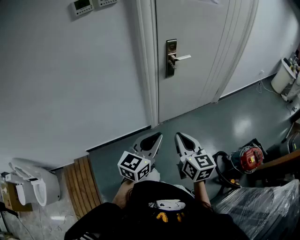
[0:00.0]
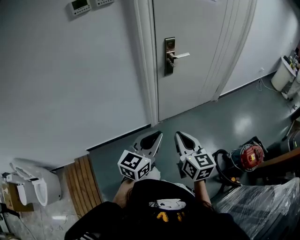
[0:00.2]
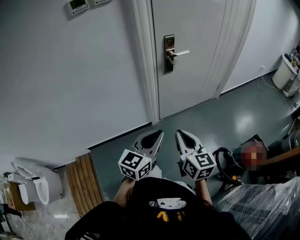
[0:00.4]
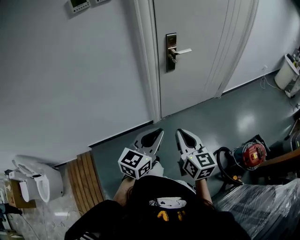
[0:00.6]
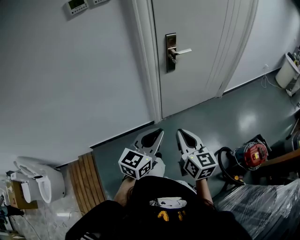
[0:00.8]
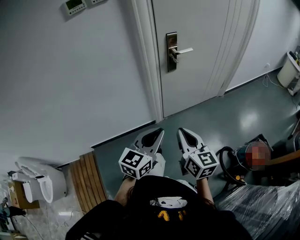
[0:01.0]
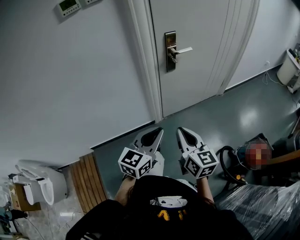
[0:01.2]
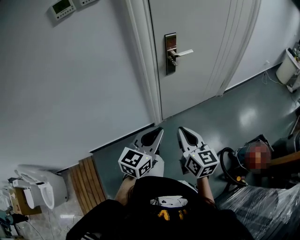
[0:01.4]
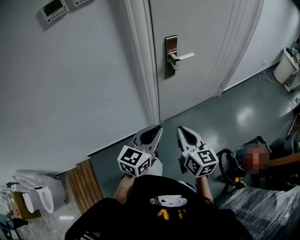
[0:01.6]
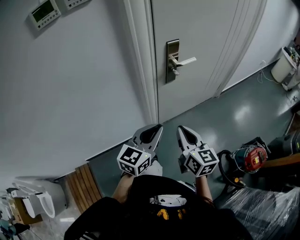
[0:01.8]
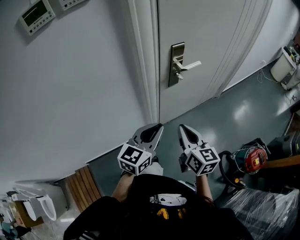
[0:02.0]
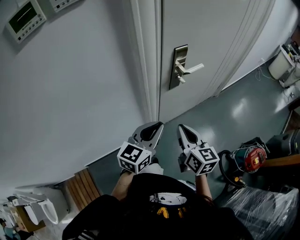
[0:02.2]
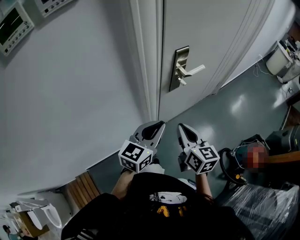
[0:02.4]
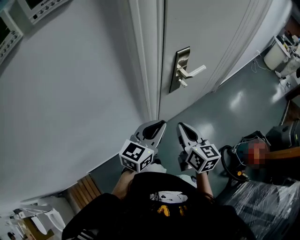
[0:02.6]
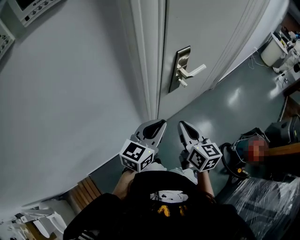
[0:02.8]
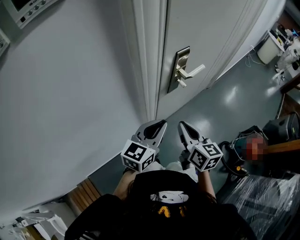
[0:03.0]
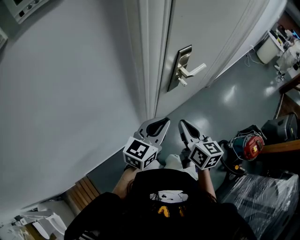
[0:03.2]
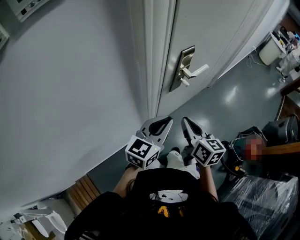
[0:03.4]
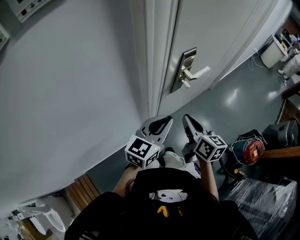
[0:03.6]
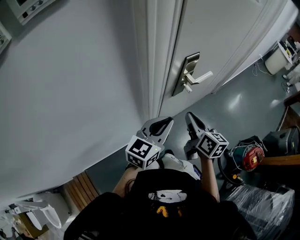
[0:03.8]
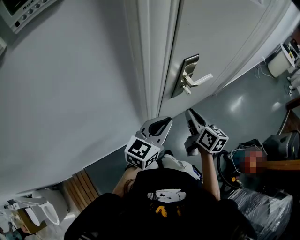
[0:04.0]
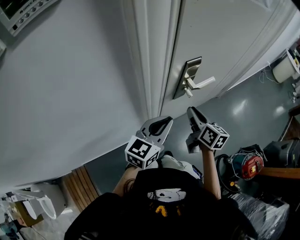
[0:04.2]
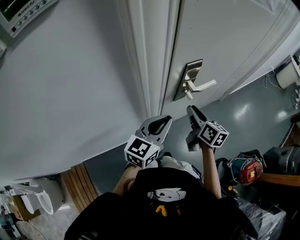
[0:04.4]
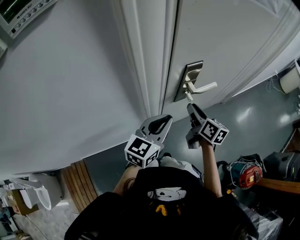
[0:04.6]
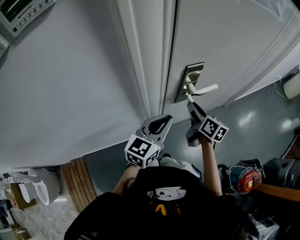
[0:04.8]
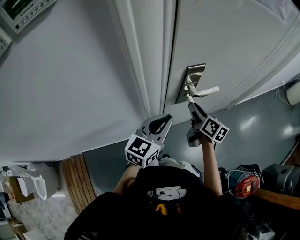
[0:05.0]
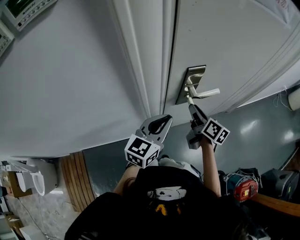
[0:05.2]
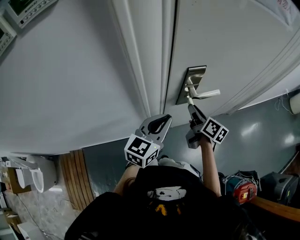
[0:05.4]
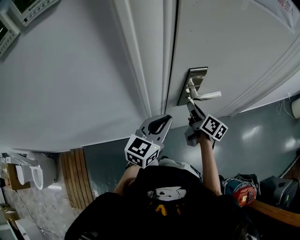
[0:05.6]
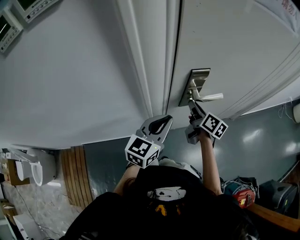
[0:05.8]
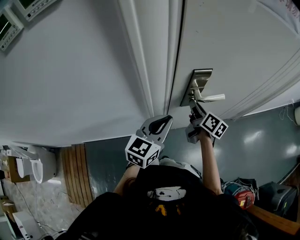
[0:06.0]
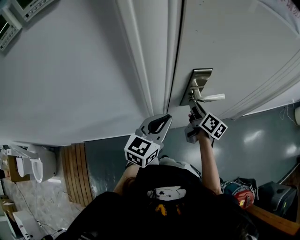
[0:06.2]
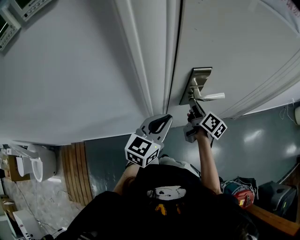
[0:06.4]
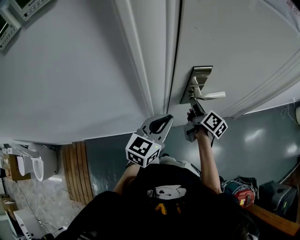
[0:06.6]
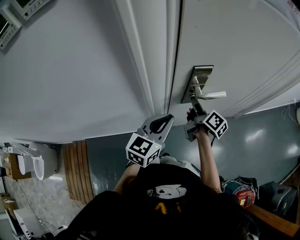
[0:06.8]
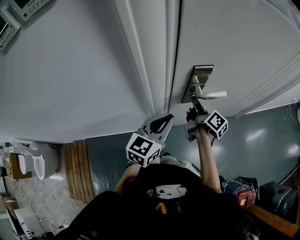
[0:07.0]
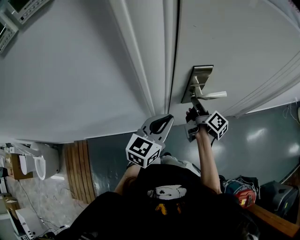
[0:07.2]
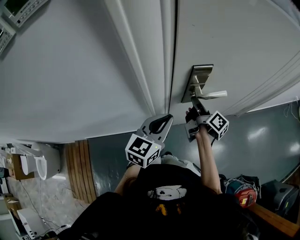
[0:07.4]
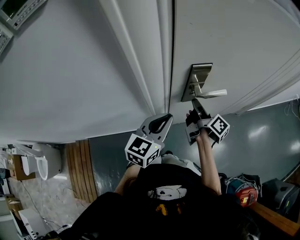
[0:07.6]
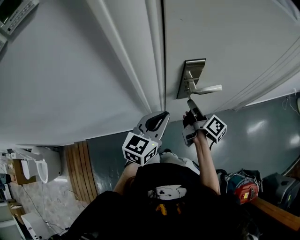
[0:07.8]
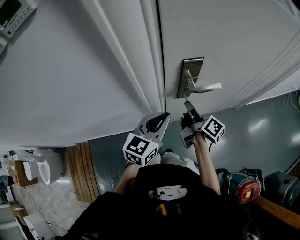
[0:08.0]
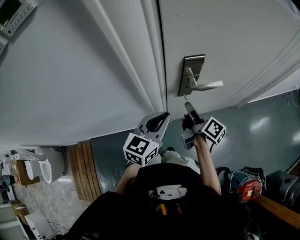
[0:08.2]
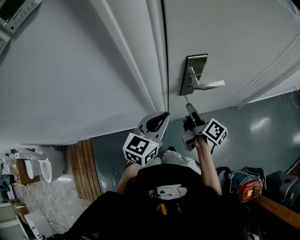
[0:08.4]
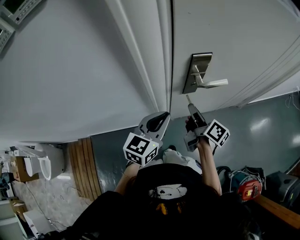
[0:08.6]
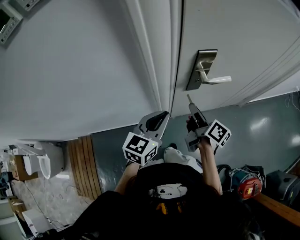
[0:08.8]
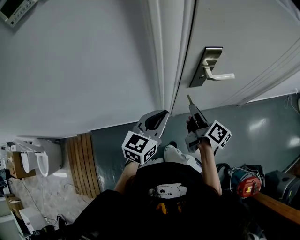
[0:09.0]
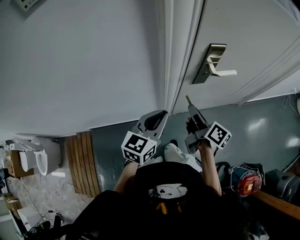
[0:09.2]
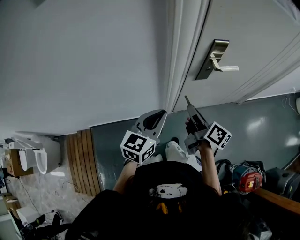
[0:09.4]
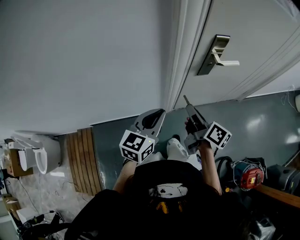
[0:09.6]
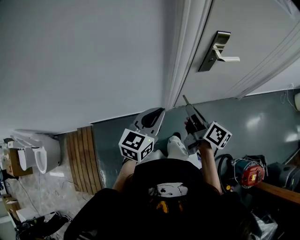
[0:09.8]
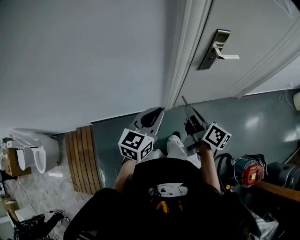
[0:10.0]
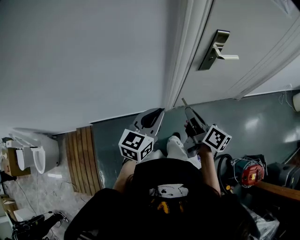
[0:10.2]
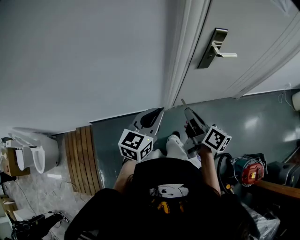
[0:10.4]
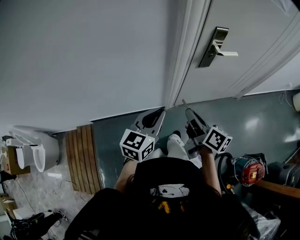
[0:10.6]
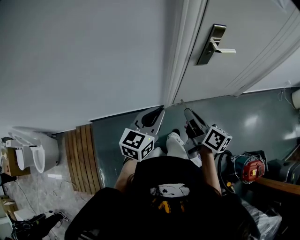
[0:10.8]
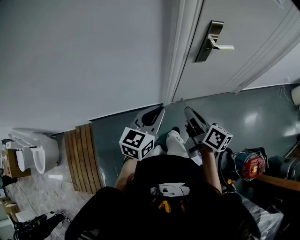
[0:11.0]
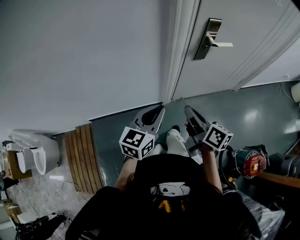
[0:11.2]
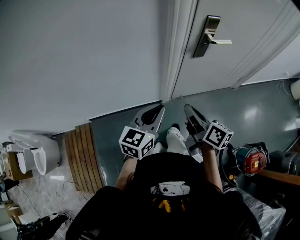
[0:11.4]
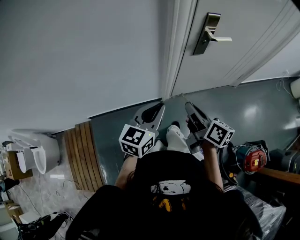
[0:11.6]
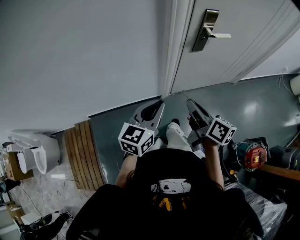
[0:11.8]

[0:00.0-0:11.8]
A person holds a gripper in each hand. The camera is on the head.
0:00.0 to 0:01.4: The two grippers go about 10 cm forward.
0:01.4 to 0:03.0: The left gripper shifts some 25 cm forward, while the right gripper travels forward and to the left by about 25 cm.
0:03.0 to 0:04.4: The right gripper goes about 15 cm forward, while the left gripper is displaced forward by roughly 5 cm.
0:04.4 to 0:06.0: The right gripper goes some 10 cm forward.
0:06.0 to 0:07.4: The right gripper swivels approximately 30 degrees.
0:07.4 to 0:08.8: The right gripper travels backward by about 10 cm. The left gripper is displaced backward by approximately 5 cm.
0:08.8 to 0:10.4: The two grippers go some 20 cm backward and to the left.
0:10.4 to 0:11.8: The grippers make only small movements.

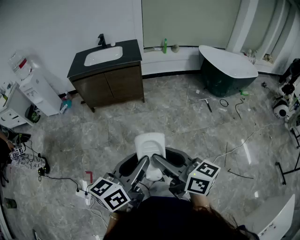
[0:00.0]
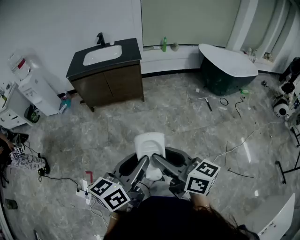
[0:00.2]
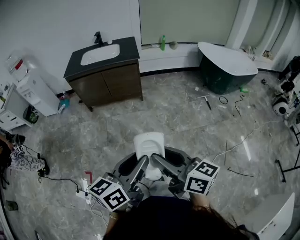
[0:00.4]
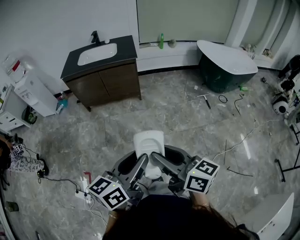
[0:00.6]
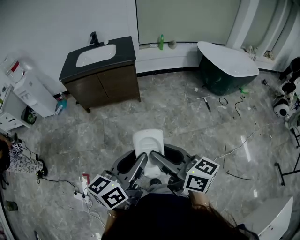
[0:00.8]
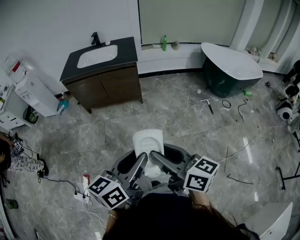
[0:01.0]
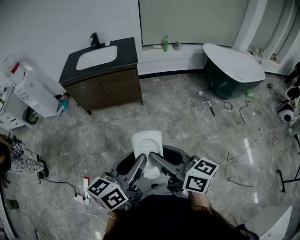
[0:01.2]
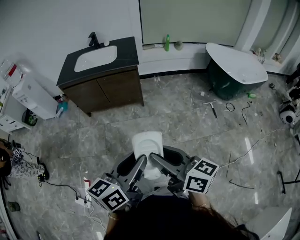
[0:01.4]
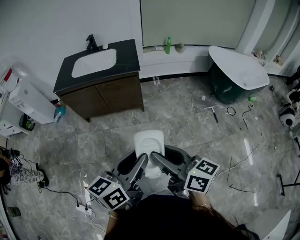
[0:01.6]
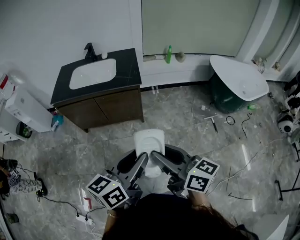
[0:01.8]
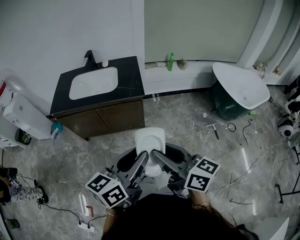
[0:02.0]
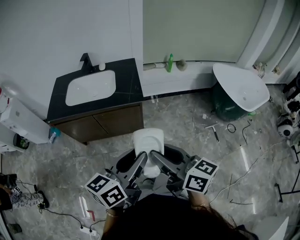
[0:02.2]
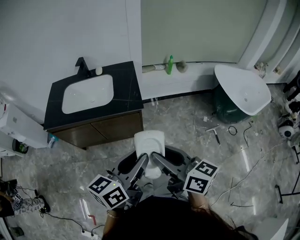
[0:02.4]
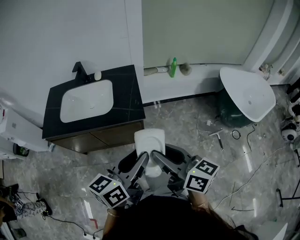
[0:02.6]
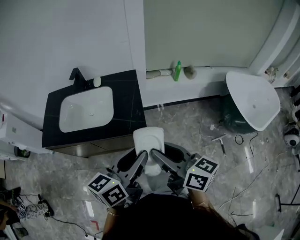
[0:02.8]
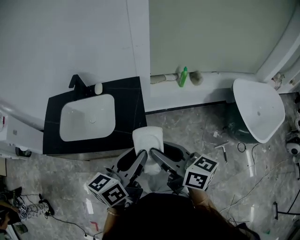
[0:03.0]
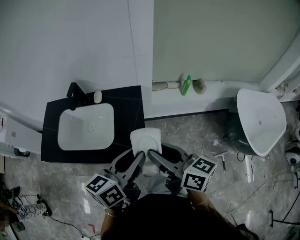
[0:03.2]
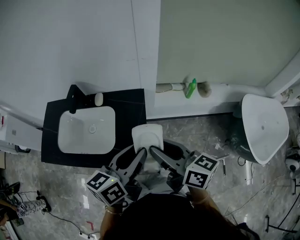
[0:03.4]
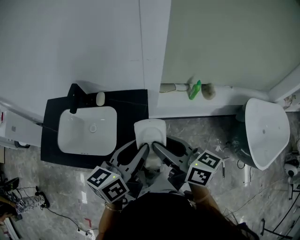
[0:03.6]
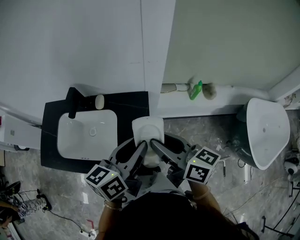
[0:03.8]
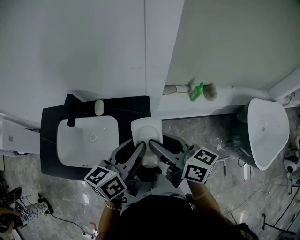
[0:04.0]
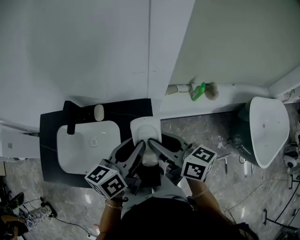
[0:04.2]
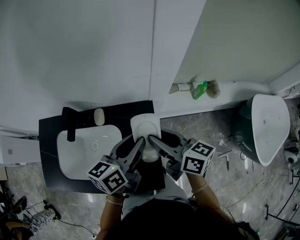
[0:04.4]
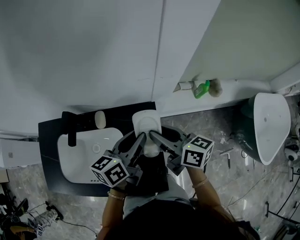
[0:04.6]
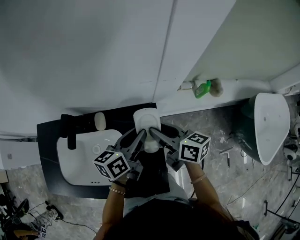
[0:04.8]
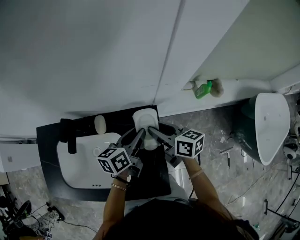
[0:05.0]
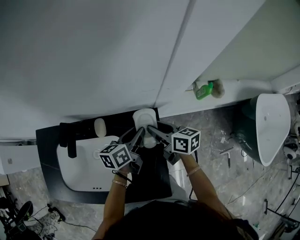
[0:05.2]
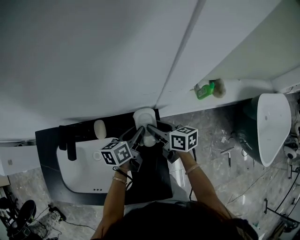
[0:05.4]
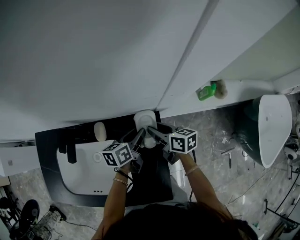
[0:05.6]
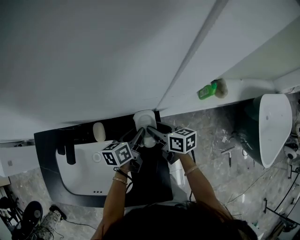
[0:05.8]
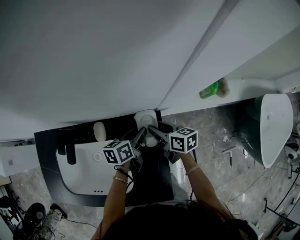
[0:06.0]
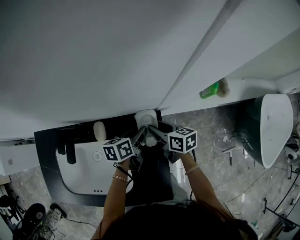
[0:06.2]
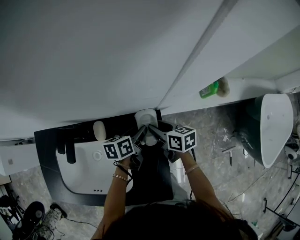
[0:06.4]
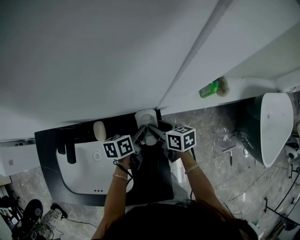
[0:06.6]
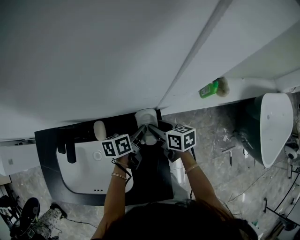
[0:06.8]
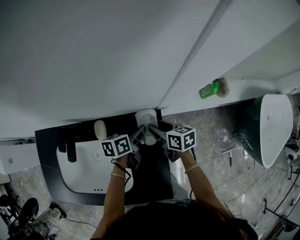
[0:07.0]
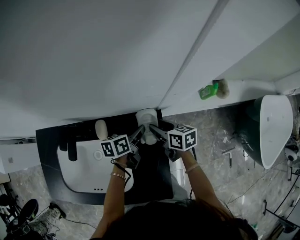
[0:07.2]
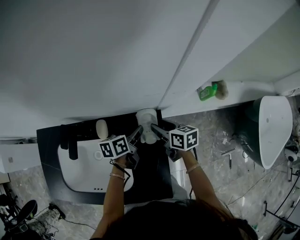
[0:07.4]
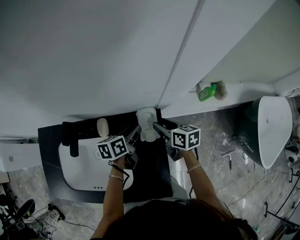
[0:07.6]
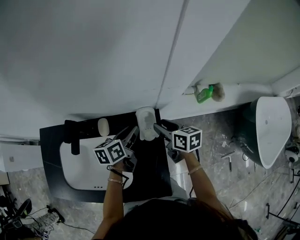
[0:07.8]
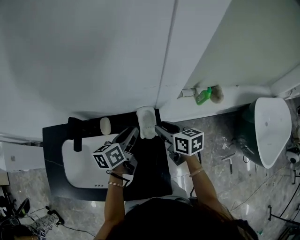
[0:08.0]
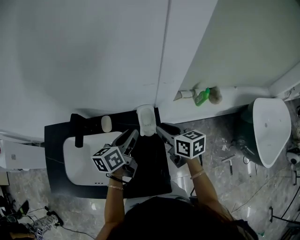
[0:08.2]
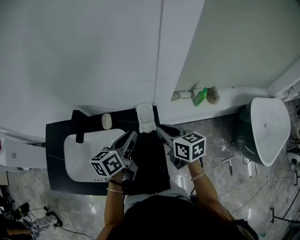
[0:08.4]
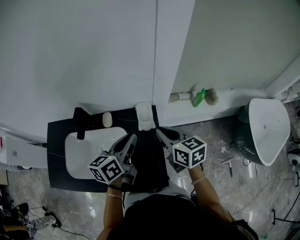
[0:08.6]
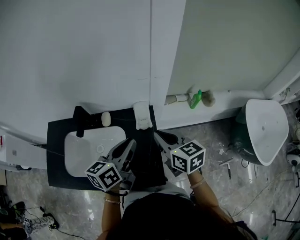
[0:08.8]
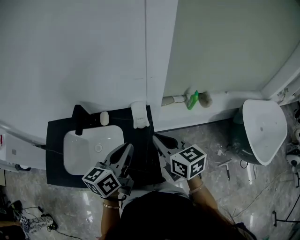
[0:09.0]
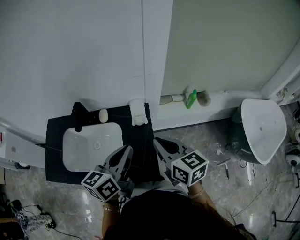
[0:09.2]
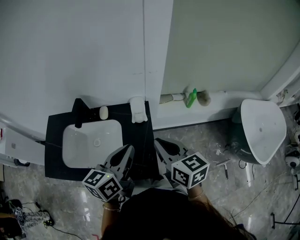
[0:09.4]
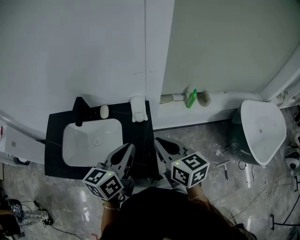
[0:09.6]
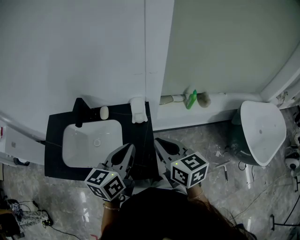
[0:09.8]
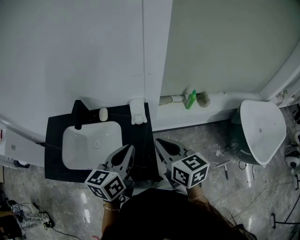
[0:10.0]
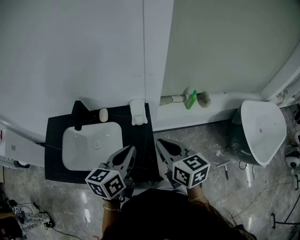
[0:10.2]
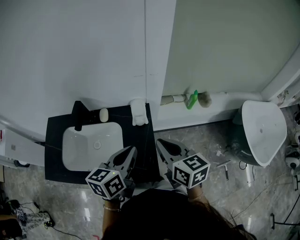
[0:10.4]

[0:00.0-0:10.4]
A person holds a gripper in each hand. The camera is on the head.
0:00.0 to 0:01.4: Both grippers travel together forward, roughly 20 cm.
0:01.4 to 0:03.0: Both grippers are carried forward, some 70 cm.
0:03.0 to 0:04.4: Both grippers move forward, some 35 cm.
0:04.4 to 0:06.0: The grippers both shift downward and forward by about 25 cm. The right gripper changes its angle by roughly 20 degrees. Meanwhile the left gripper swivels roughly 20 degrees.
0:06.0 to 0:07.4: There are only small adjustments of the grippers.
0:07.4 to 0:09.0: Both grippers move upward and backward, about 30 cm. The right gripper changes its angle by some 30 degrees, and closes. The left gripper turns by roughly 30 degrees, and closes.

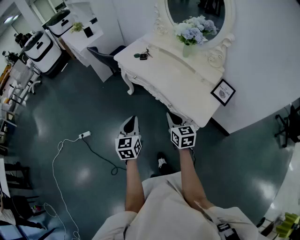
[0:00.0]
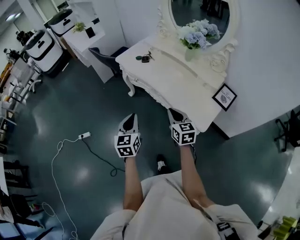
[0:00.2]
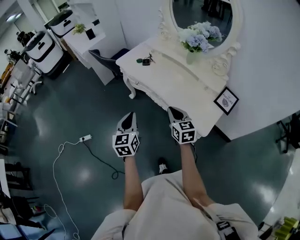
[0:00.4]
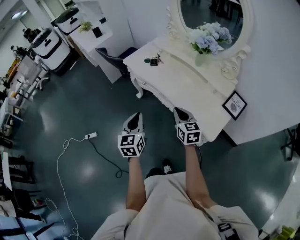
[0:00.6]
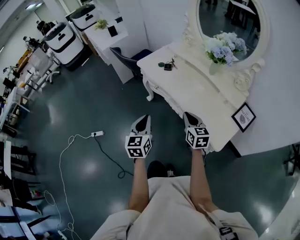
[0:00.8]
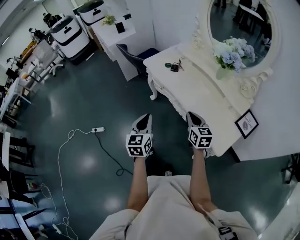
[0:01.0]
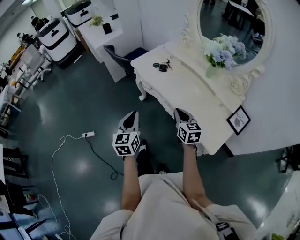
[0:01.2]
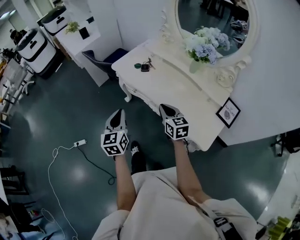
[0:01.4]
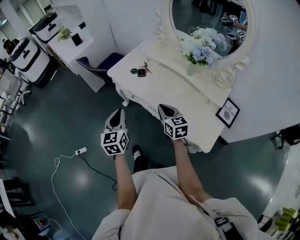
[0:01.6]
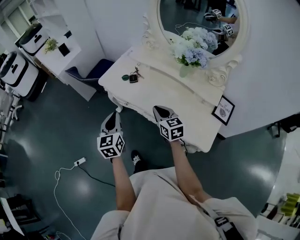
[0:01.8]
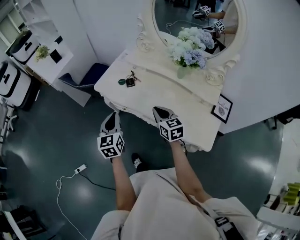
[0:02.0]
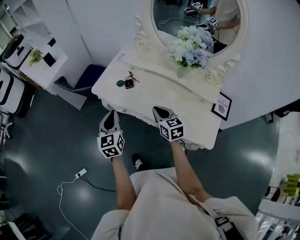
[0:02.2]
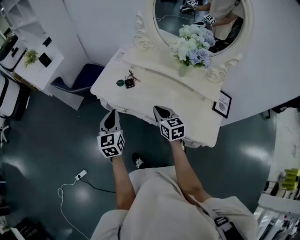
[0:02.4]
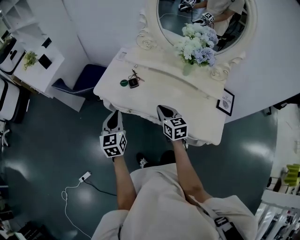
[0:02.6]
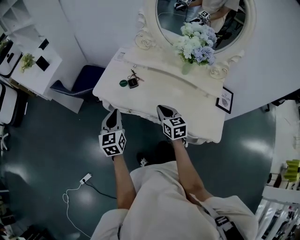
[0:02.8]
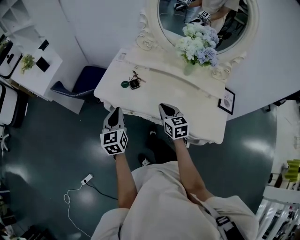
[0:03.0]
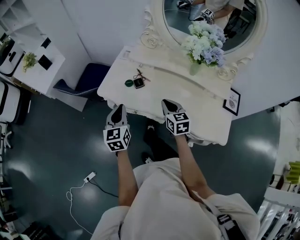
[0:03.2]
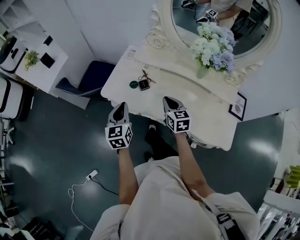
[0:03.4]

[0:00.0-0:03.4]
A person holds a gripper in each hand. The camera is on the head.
0:00.0 to 0:01.6: The two grippers go some 25 cm forward.
0:01.6 to 0:03.4: The two grippers go approximately 20 cm forward. The right gripper swivels roughly 20 degrees.
